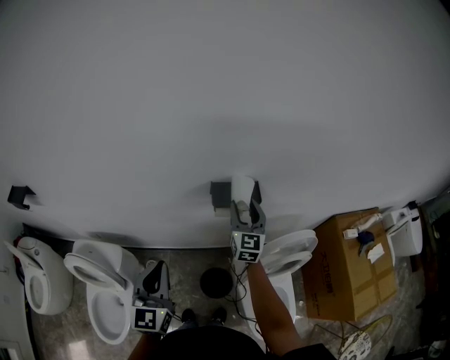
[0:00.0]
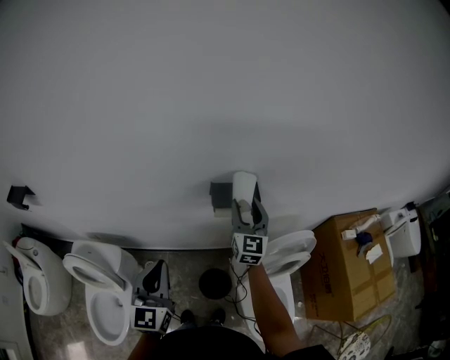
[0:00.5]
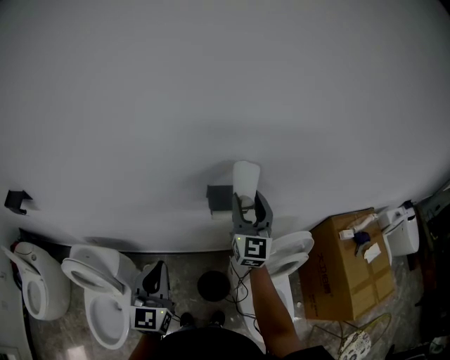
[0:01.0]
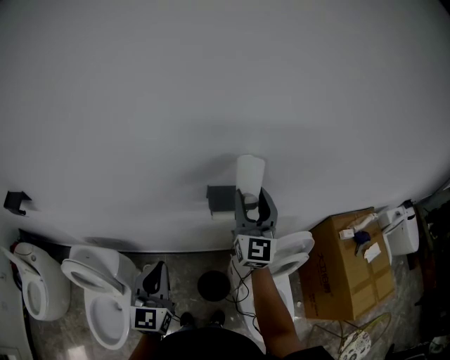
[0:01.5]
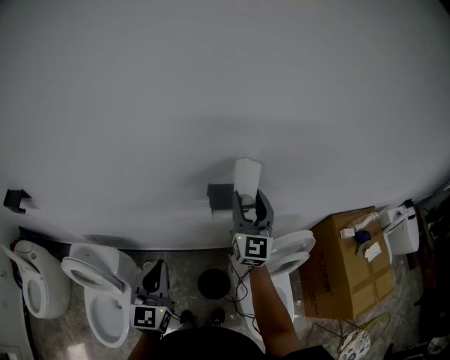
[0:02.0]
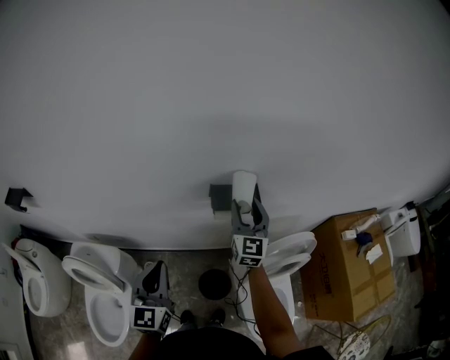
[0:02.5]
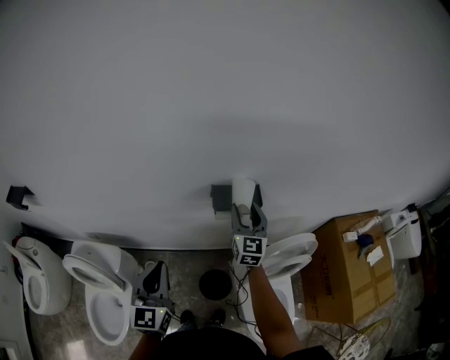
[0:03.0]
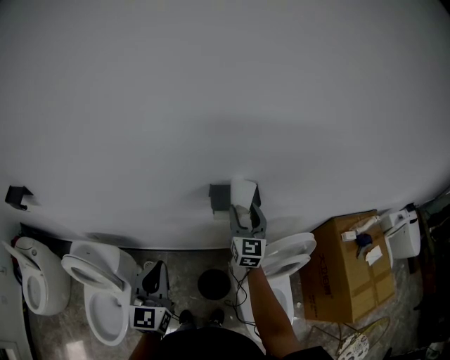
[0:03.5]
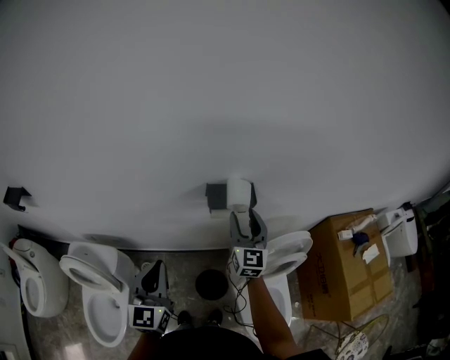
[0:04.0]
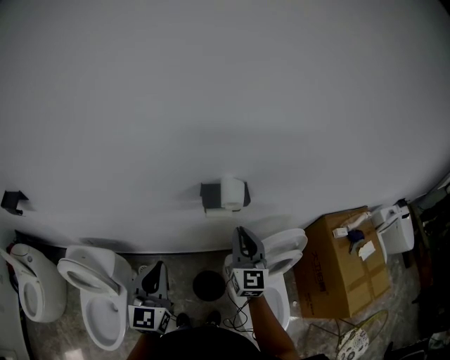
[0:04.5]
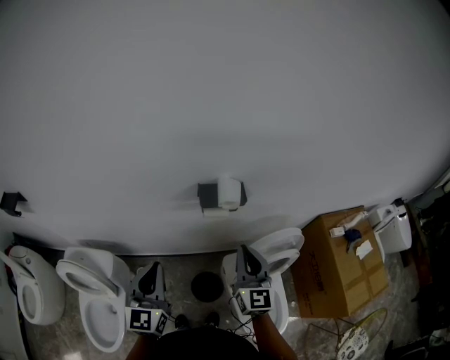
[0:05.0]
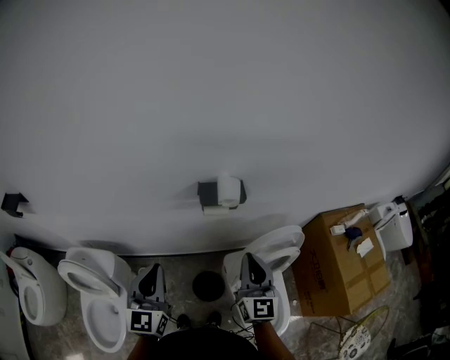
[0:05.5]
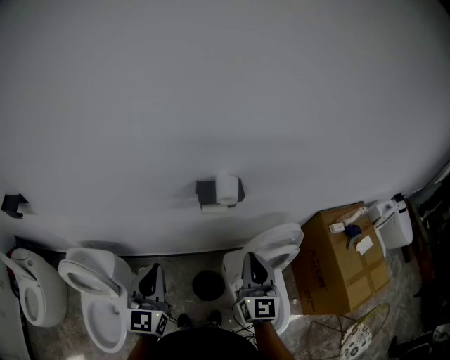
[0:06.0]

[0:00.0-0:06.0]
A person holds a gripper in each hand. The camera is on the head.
0.0 to 2.0 s: The right gripper moves upward, about 10 cm.
2.0 to 4.0 s: The right gripper shifts roughly 10 cm downward.
4.0 to 6.0 s: The right gripper heads backward, covering roughly 20 cm, and closes up.

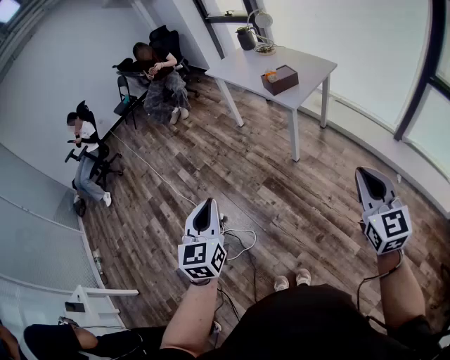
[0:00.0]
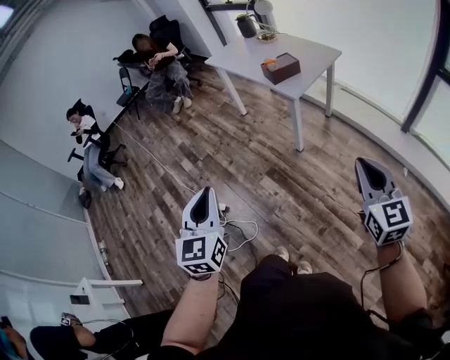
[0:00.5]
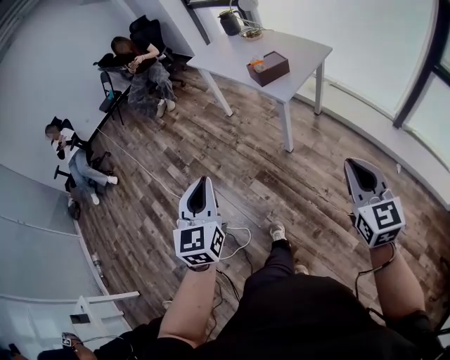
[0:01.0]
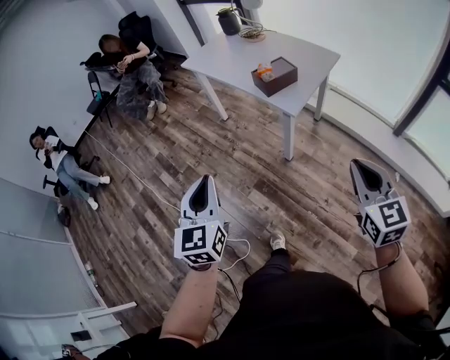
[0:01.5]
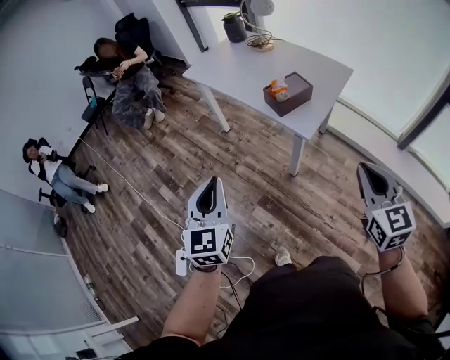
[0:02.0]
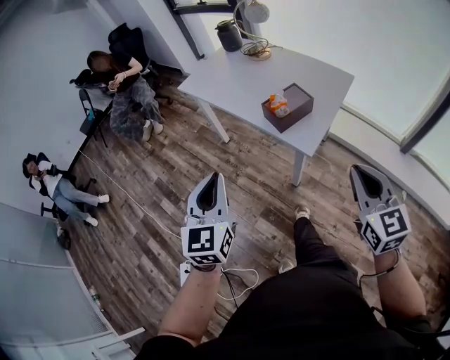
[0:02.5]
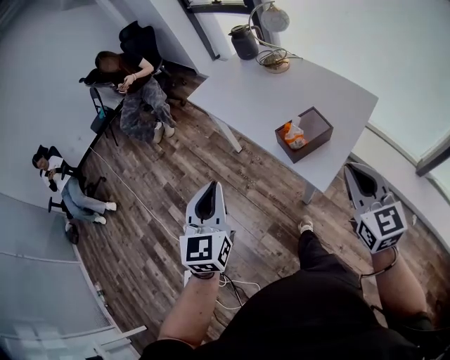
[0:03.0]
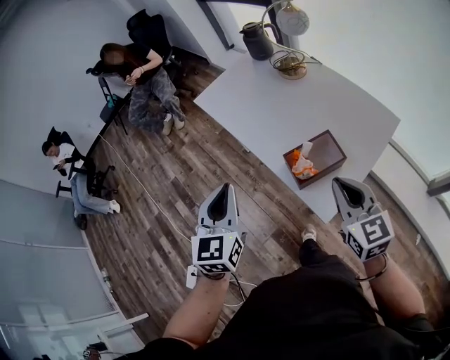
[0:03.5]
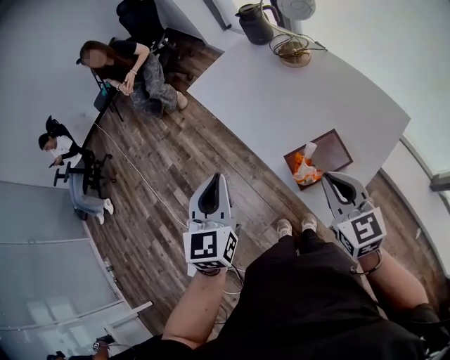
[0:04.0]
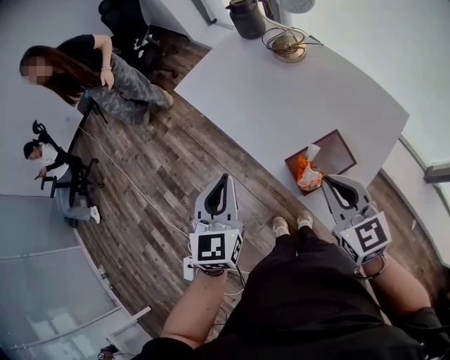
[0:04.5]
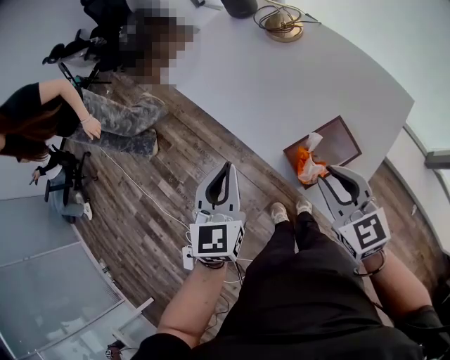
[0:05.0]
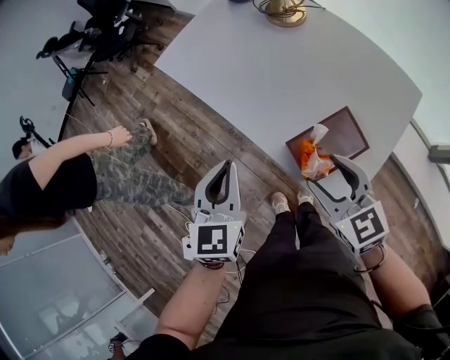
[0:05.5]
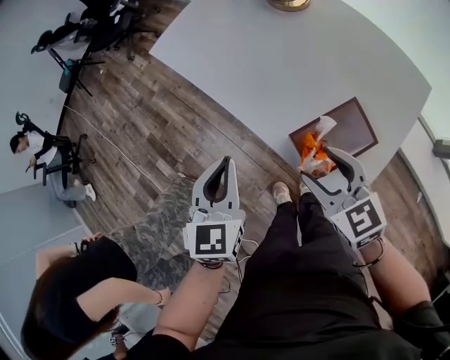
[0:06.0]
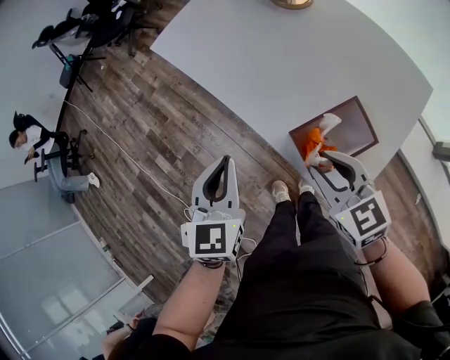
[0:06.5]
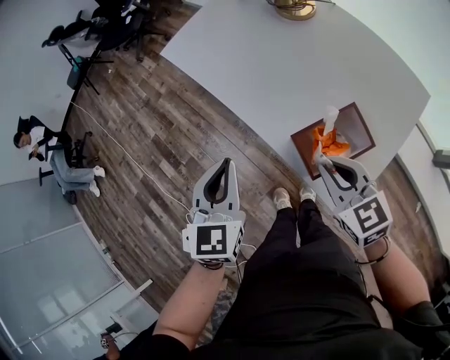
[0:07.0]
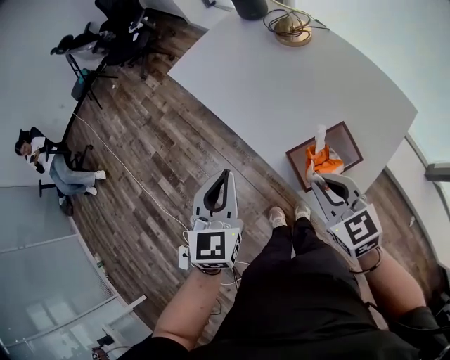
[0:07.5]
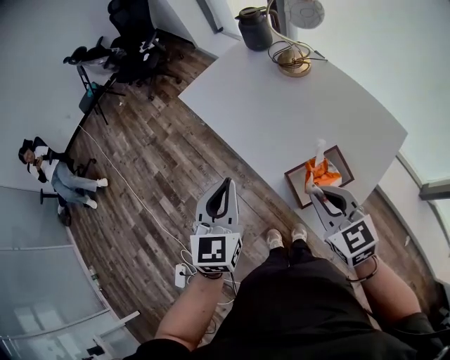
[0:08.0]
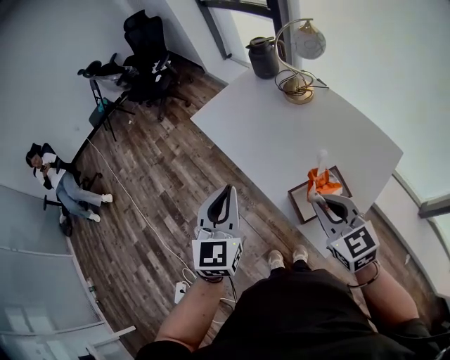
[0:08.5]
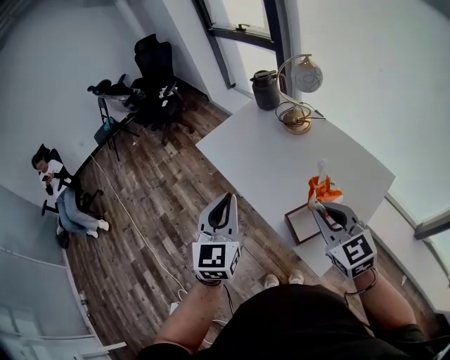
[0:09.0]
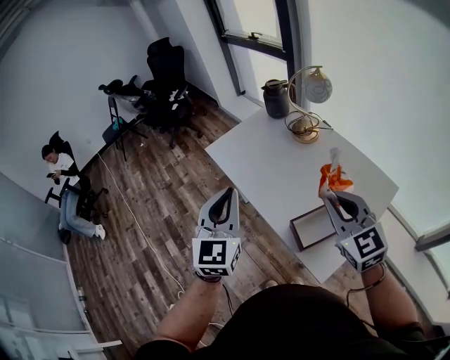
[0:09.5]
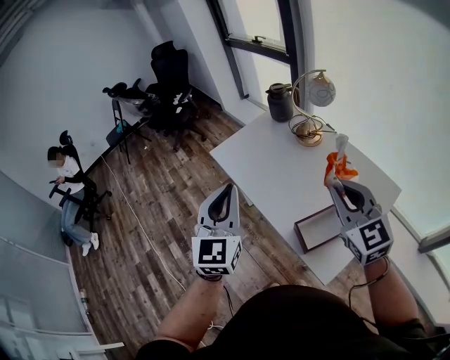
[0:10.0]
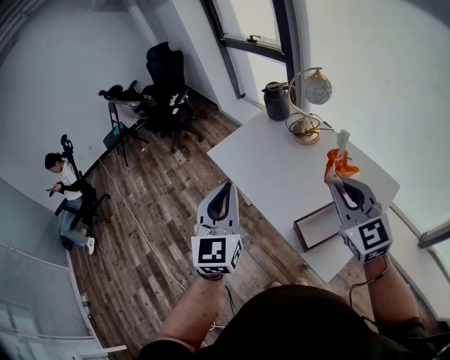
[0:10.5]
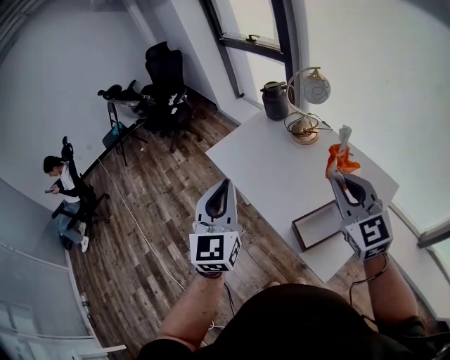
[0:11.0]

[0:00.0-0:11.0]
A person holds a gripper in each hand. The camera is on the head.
0.0 to 2.0 s: Both grippers travel together forward, some 40 cm.
2.0 to 3.5 s: Both grippers move forward, roughly 35 cm.
3.5 to 5.5 s: The left gripper is displaced downward and forward by roughly 15 cm. The right gripper is displaced downward, forward and to the left by some 15 cm, and opens.
5.5 to 7.5 s: The right gripper closes its fingers.
7.5 to 9.0 s: The grippers both shift upward by some 15 cm.
9.0 to 11.0 s: The left gripper shifts approximately 5 cm upward. The right gripper heads upward and forward, covering approximately 10 cm.

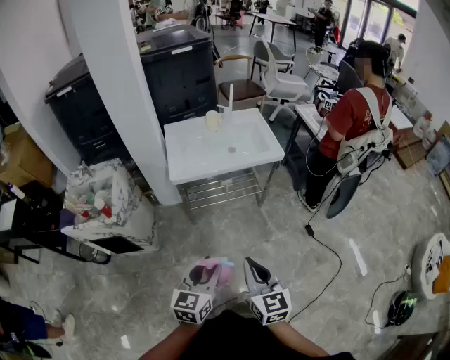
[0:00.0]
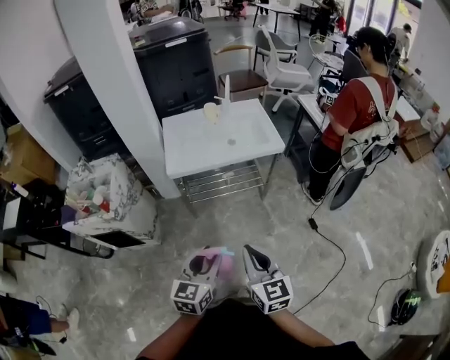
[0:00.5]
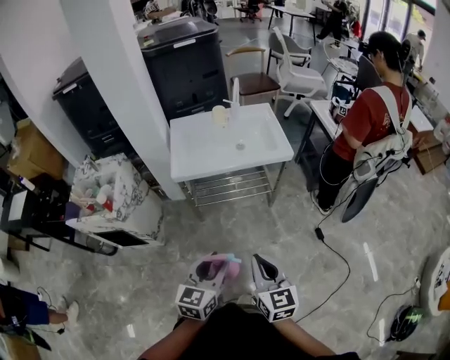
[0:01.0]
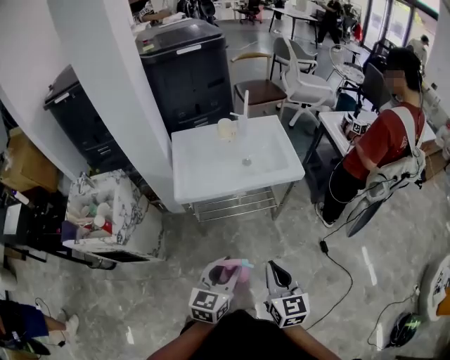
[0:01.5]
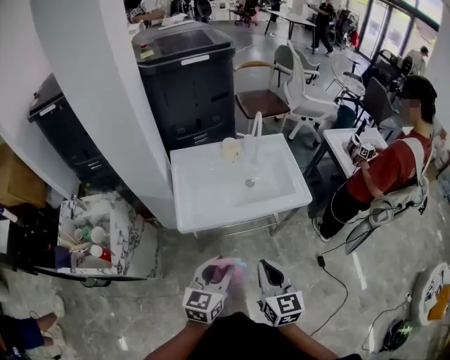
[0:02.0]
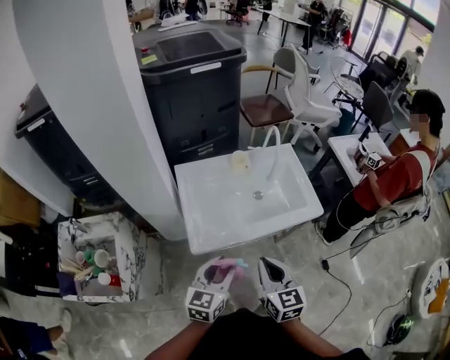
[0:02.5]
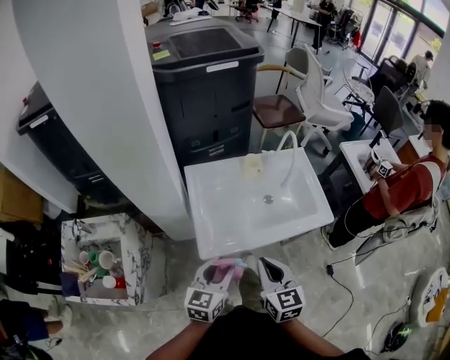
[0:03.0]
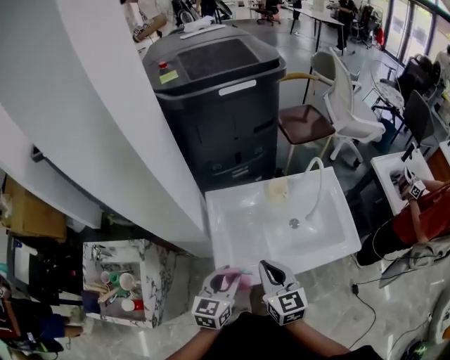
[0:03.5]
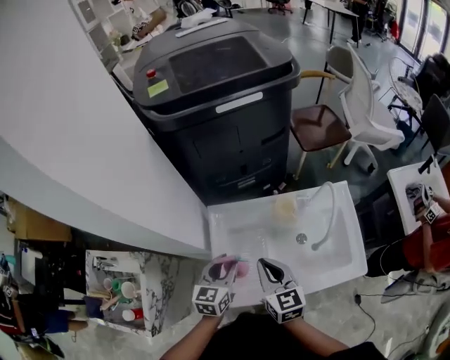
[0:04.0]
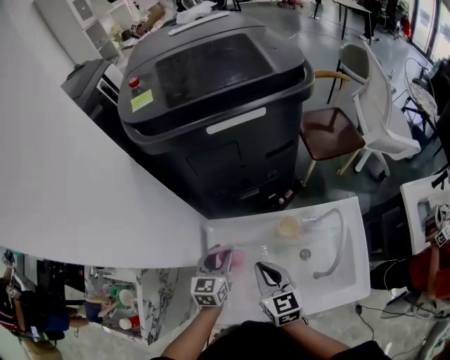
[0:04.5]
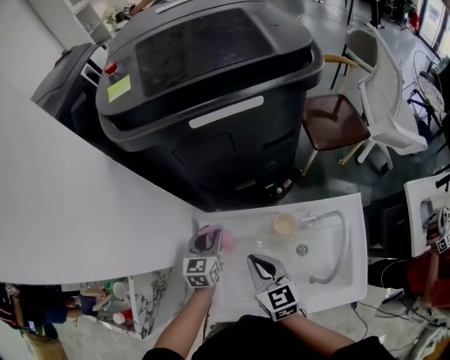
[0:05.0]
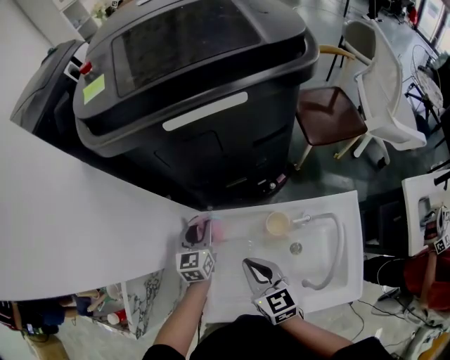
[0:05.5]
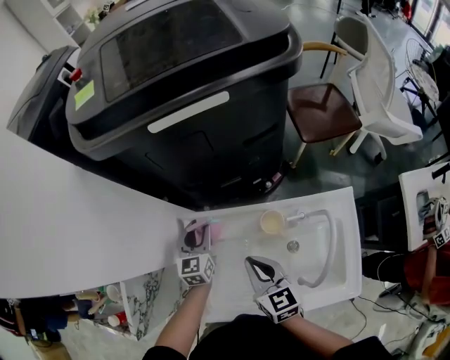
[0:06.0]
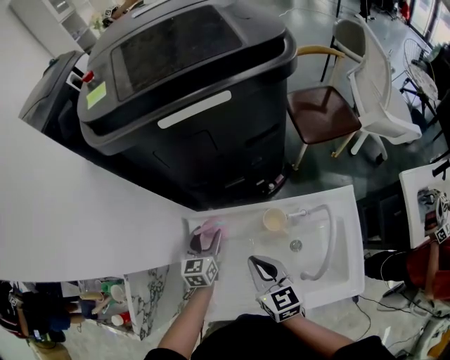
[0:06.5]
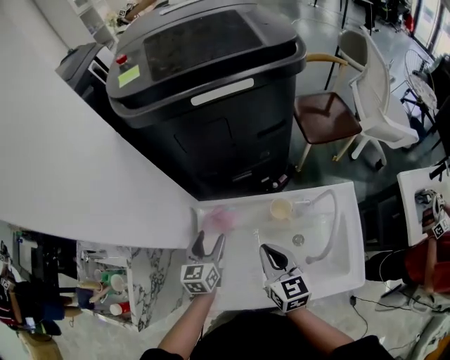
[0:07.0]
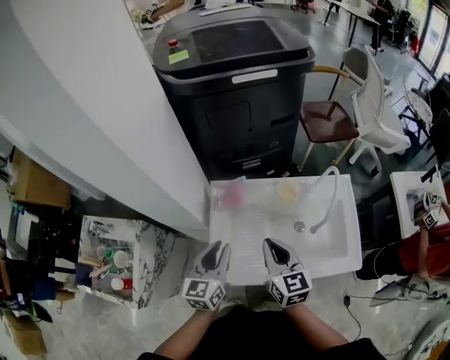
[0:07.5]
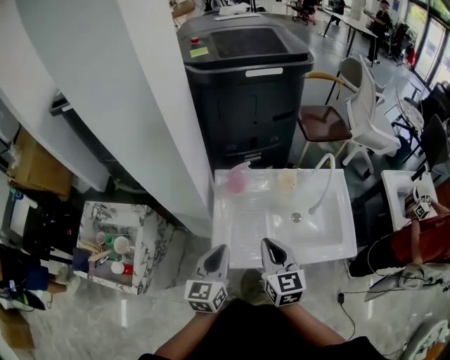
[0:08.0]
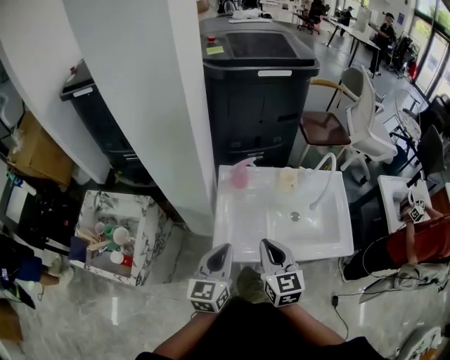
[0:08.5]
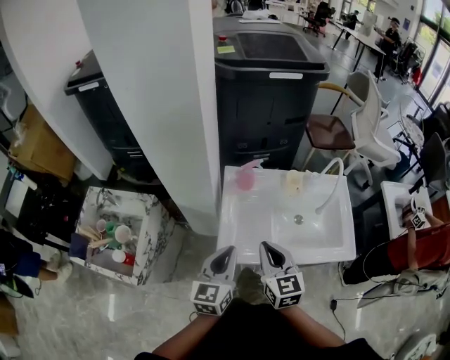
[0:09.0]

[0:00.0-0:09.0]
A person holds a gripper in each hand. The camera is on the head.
0.0 to 2.0 s: The grippers both shift forward by some 35 cm.
2.0 to 4.5 s: The two grippers travel together, forward, about 60 cm. The left gripper changes its angle by approximately 20 degrees.
4.5 to 7.0 s: The left gripper moves about 10 cm forward and comes back, and opens.
7.0 to 9.0 s: The left gripper goes about 35 cm backward and upward, and closes. Meanwhile the right gripper goes some 25 cm backward and to the left.

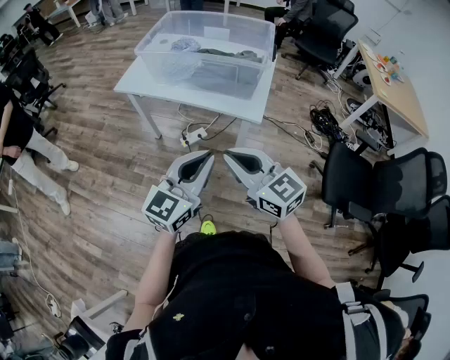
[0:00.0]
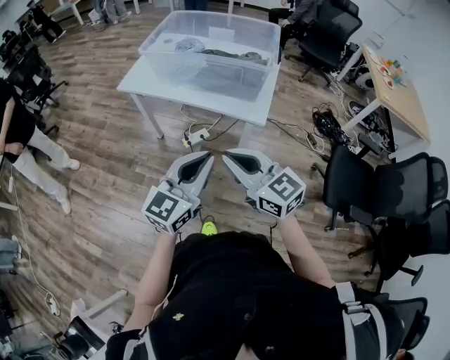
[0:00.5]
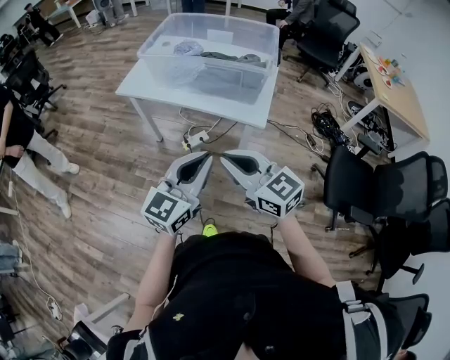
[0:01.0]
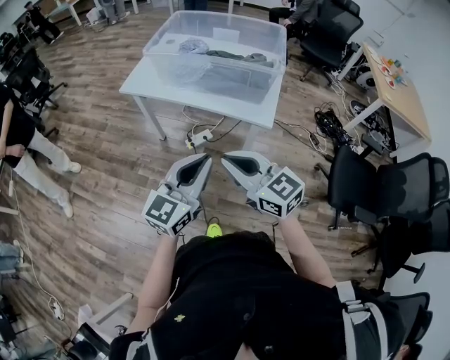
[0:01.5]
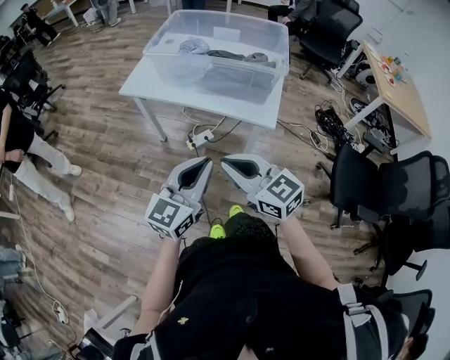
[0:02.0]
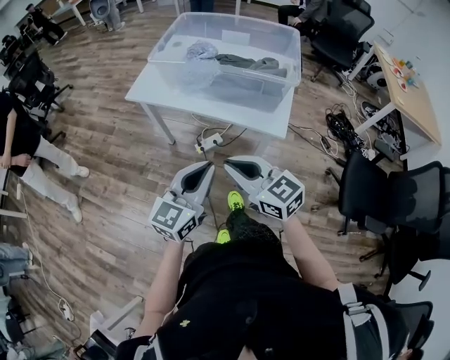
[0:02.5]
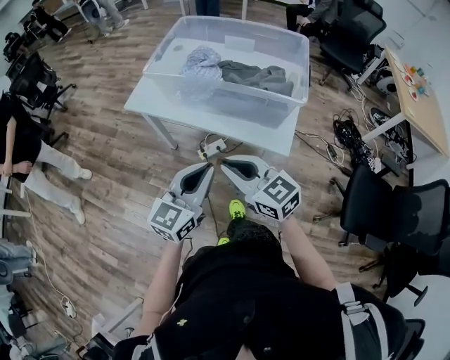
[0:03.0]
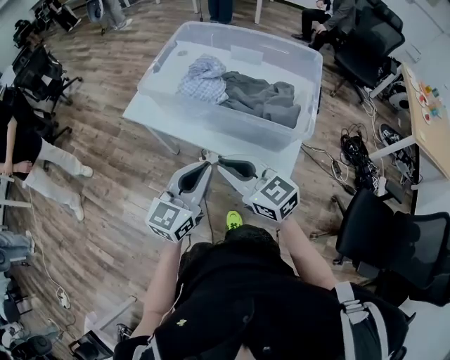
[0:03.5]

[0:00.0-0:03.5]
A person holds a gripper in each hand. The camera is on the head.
0.0 to 2.0 s: Both grippers travel together to the left, approximately 5 cm.
2.0 to 3.5 s: The two grippers go roughly 25 cm forward.
